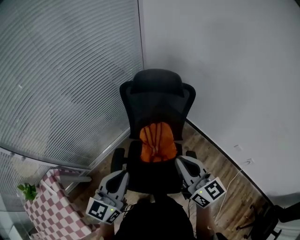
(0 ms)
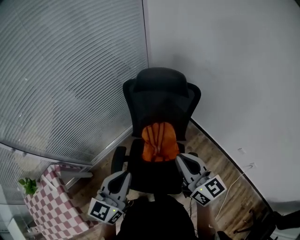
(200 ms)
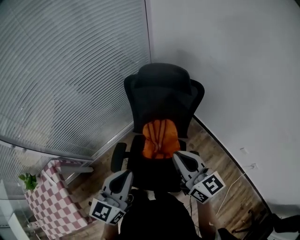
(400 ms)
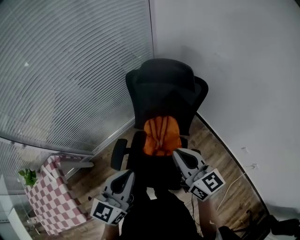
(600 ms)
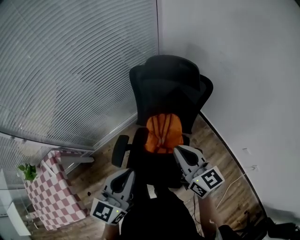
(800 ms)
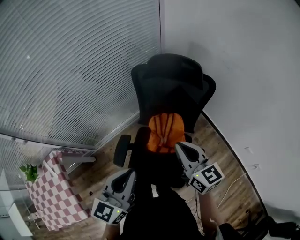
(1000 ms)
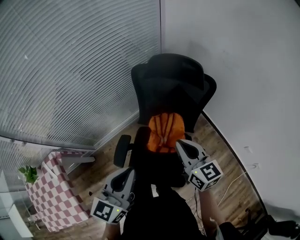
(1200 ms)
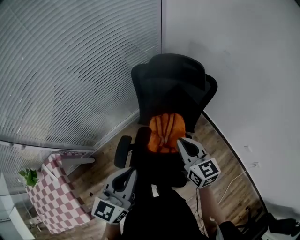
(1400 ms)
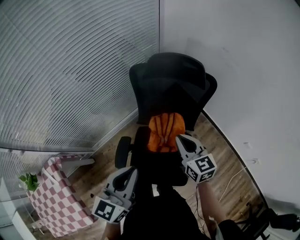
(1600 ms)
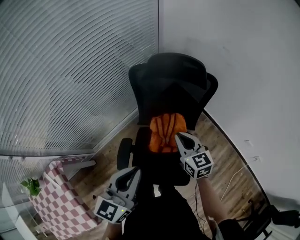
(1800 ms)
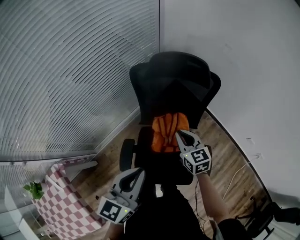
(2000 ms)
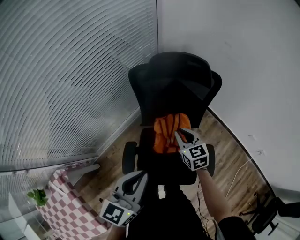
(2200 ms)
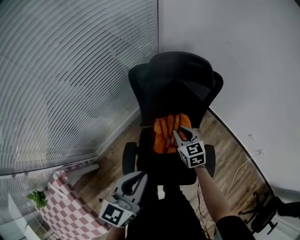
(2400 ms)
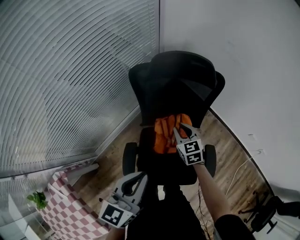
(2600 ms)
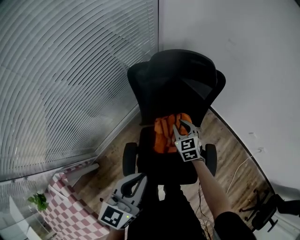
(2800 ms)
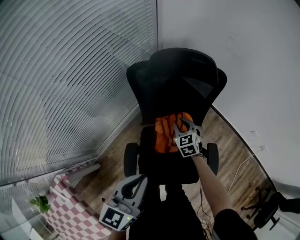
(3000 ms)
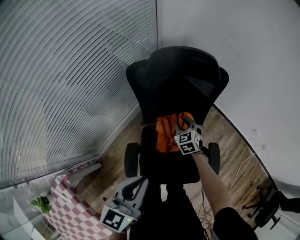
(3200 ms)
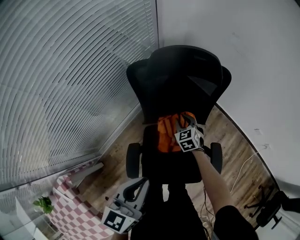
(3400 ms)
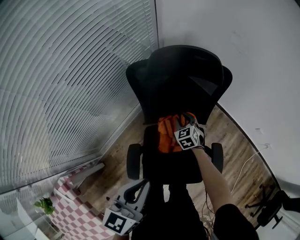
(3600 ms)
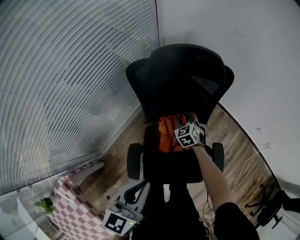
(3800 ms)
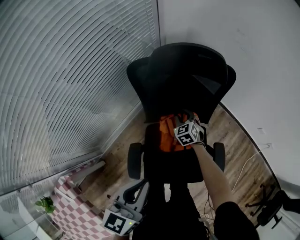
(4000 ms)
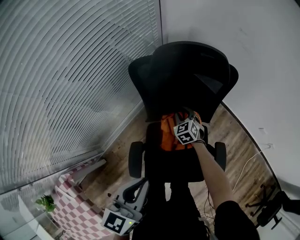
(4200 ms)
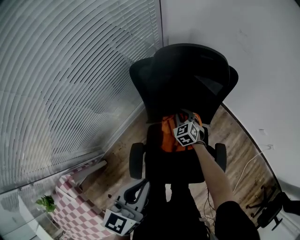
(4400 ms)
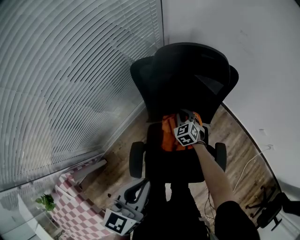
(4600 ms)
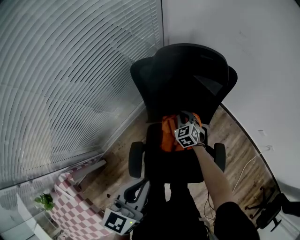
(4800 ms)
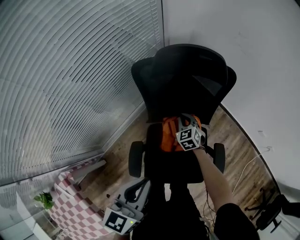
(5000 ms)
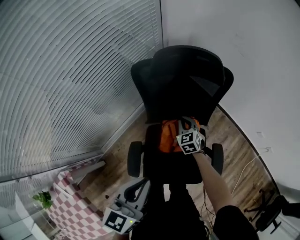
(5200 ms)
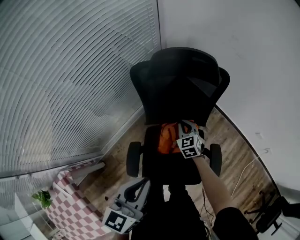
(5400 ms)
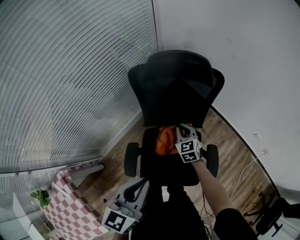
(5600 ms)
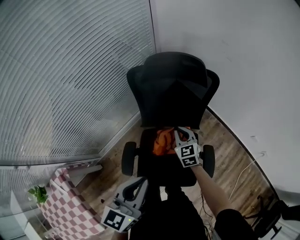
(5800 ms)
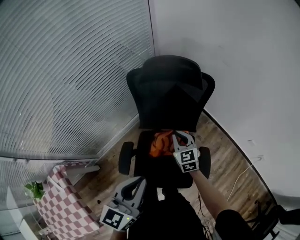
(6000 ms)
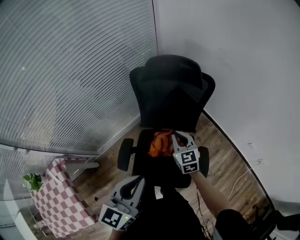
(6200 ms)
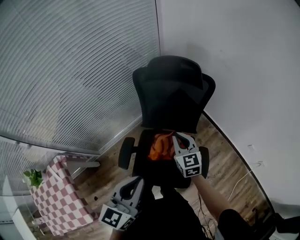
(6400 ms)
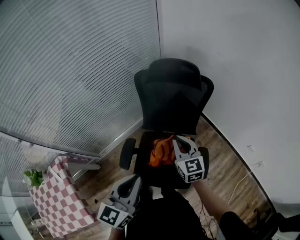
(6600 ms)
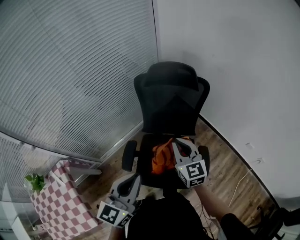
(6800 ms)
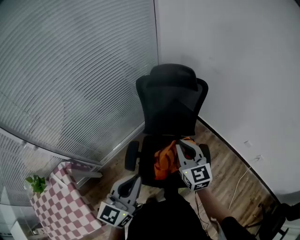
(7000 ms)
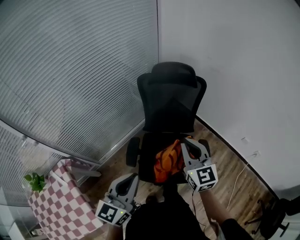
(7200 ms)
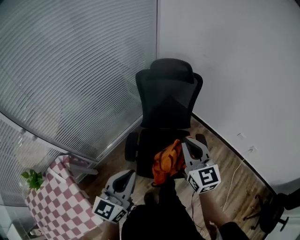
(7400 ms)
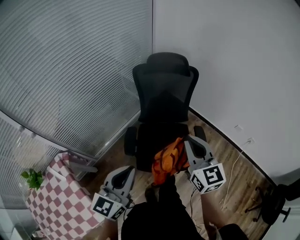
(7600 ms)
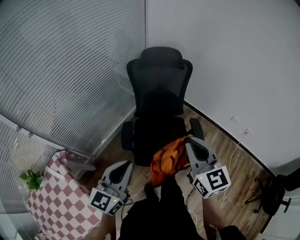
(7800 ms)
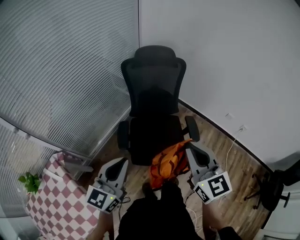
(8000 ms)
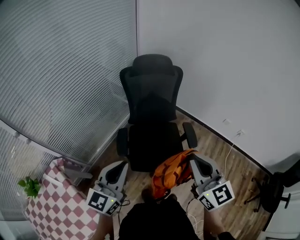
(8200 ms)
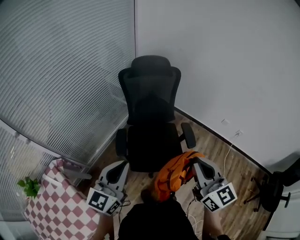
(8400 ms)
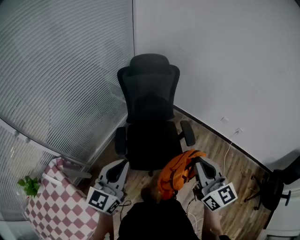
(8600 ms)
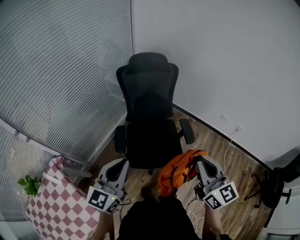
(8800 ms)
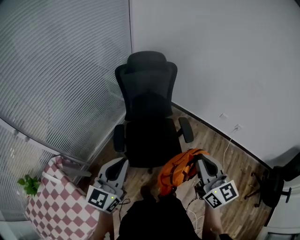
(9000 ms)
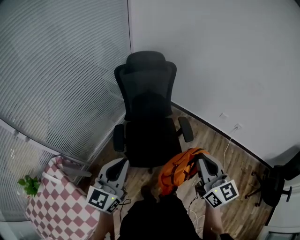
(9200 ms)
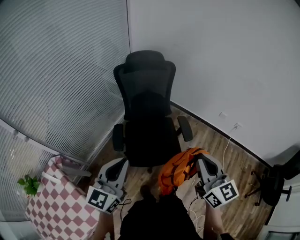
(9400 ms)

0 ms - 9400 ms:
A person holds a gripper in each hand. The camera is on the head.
0 ms - 1600 ms: The left gripper is displaced forward by roughly 5 cm, while the right gripper shifts roughly 20 cm forward and downward, and swivels about 20 degrees.
1600 ms - 3200 ms: The left gripper travels forward by approximately 5 cm. Meanwhile the right gripper is displaced downward and forward by approximately 25 cm, swivels some 30 degrees, and opens its fingers.
3200 ms - 4800 ms: The right gripper ends up about 5 cm from where it was.
4800 ms - 6200 ms: The left gripper shifts approximately 15 cm backward, to the right and upward. Meanwhile the right gripper goes some 25 cm upward and backward, and turns by about 30 degrees.
6200 ms - 7800 ms: The right gripper travels backward and upward by about 40 cm; the left gripper is displaced backward and to the left by about 25 cm.
7800 ms - 9400 ms: The right gripper goes about 15 cm backward and to the right; the left gripper shifts by approximately 5 cm.

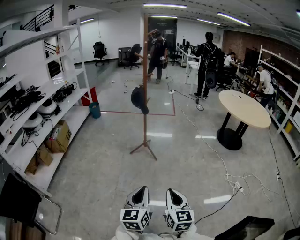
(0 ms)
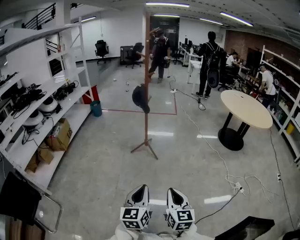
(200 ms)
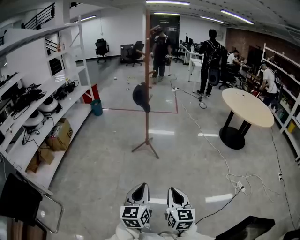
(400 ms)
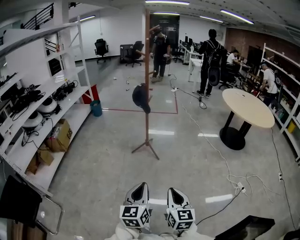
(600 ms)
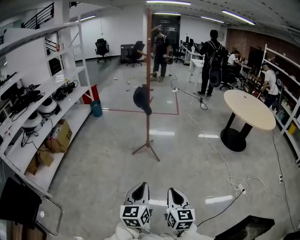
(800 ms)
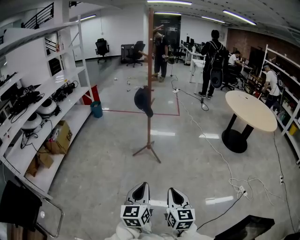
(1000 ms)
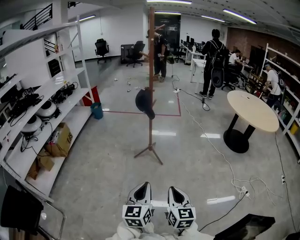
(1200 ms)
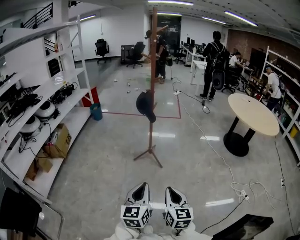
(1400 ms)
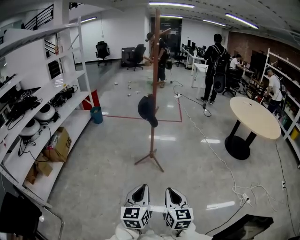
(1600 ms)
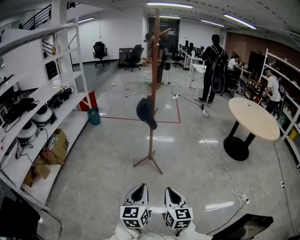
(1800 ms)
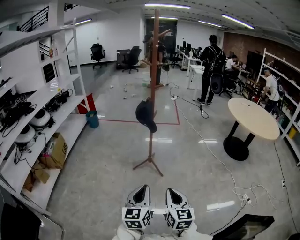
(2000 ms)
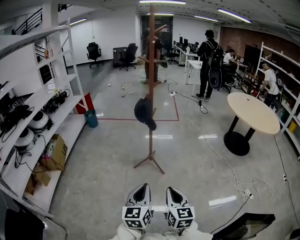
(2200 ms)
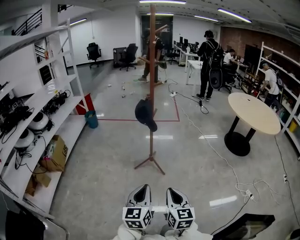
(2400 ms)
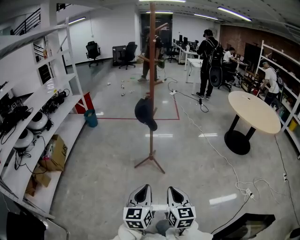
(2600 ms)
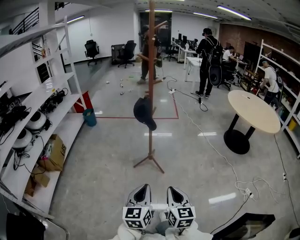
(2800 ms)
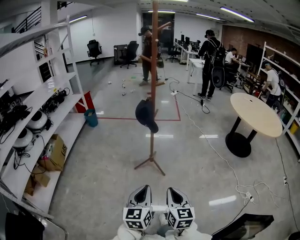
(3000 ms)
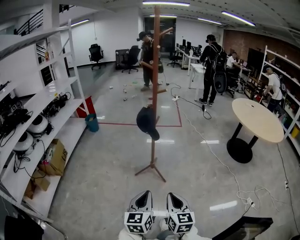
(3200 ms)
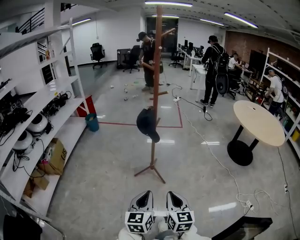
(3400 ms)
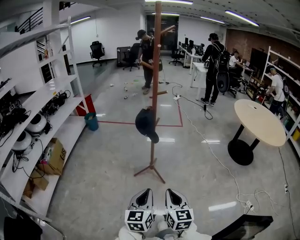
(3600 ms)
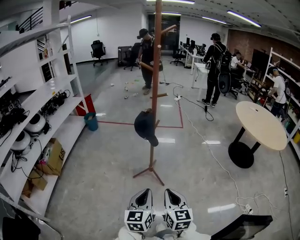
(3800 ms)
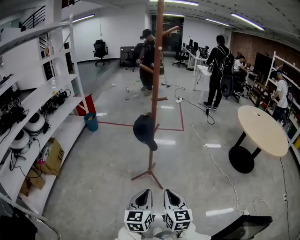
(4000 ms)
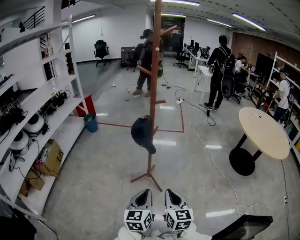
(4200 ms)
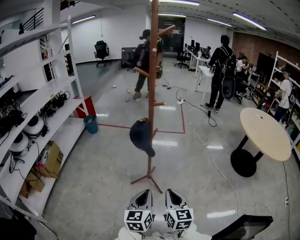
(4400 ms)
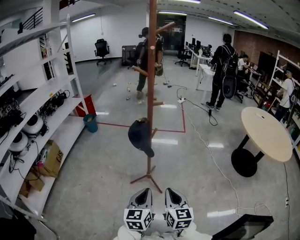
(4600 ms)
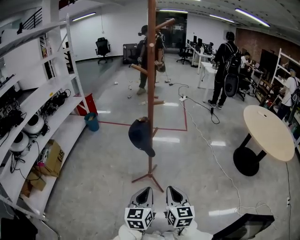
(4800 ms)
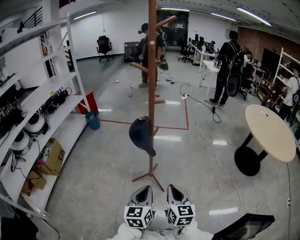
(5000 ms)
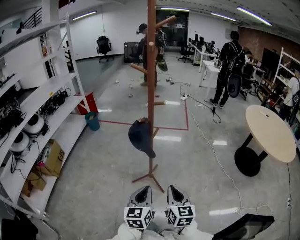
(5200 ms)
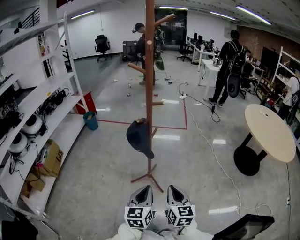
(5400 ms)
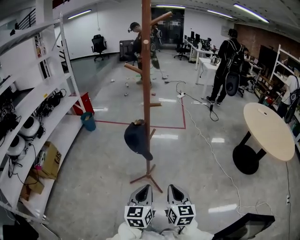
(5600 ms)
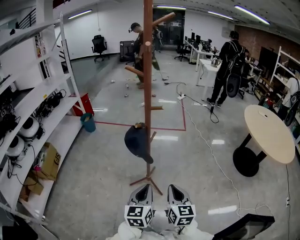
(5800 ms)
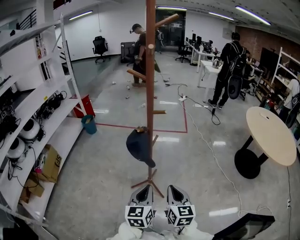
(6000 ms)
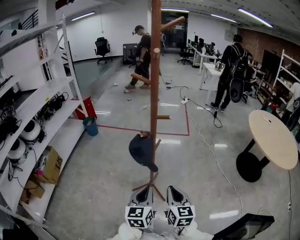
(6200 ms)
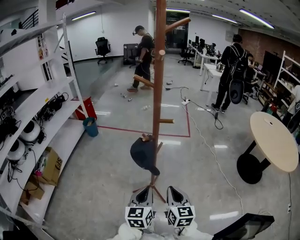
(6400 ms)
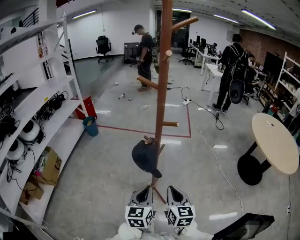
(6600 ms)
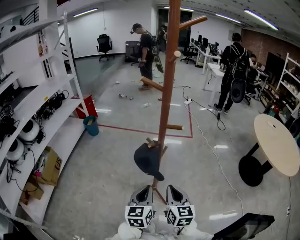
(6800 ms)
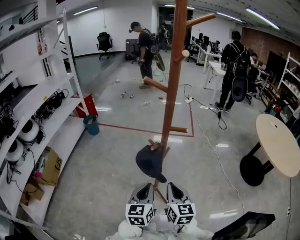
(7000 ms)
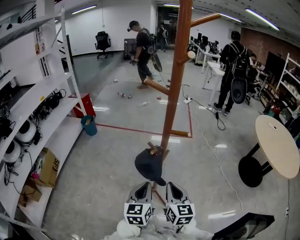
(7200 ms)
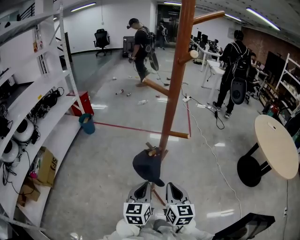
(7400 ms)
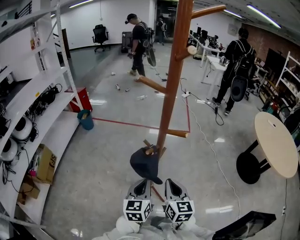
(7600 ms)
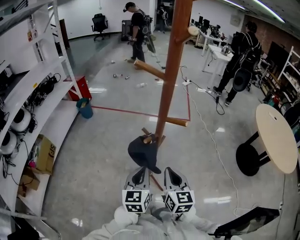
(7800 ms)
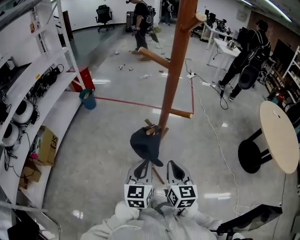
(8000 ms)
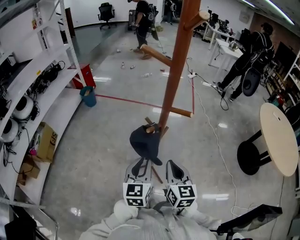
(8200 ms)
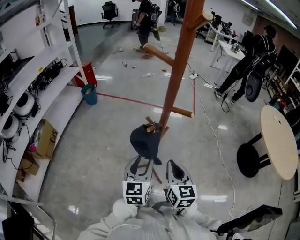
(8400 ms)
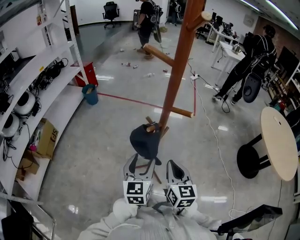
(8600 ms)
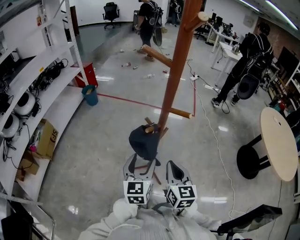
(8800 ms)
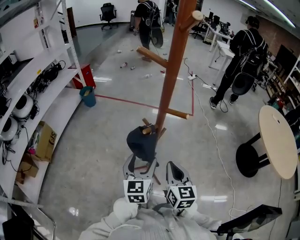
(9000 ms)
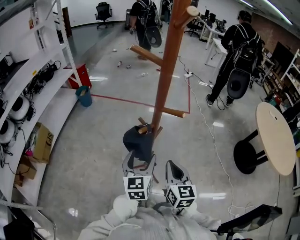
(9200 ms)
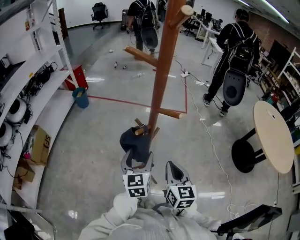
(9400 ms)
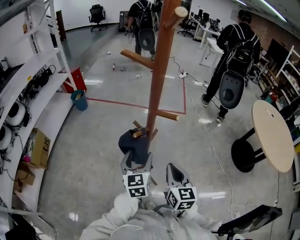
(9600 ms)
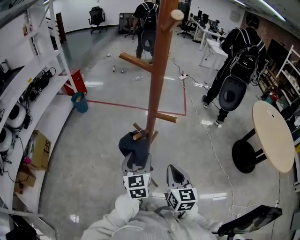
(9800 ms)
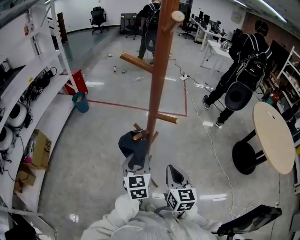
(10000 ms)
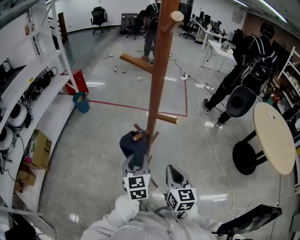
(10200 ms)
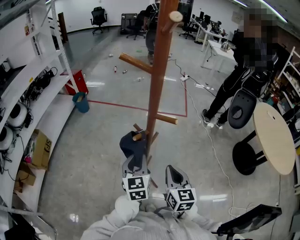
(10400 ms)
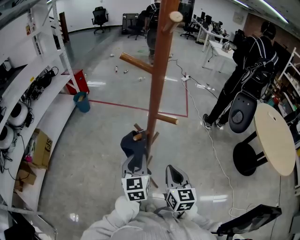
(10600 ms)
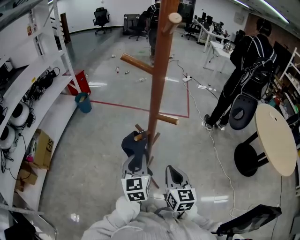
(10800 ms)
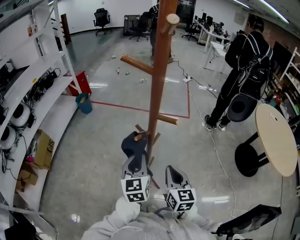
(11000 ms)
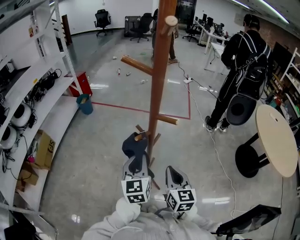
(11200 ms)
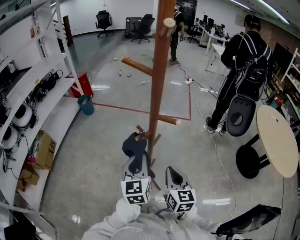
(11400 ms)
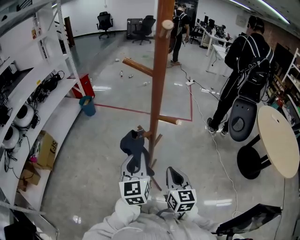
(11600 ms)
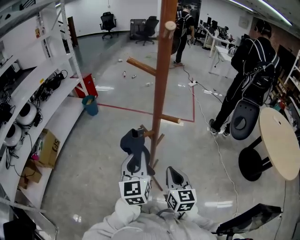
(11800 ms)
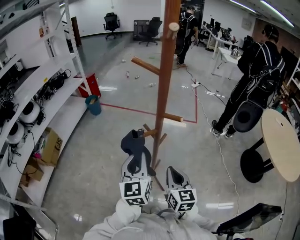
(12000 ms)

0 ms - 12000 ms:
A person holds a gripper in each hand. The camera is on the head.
0 ms - 1600 ms: Both grippers travel together forward, about 15 cm.
1600 ms - 3000 ms: Both grippers move forward, roughly 10 cm.
3000 ms - 4400 ms: The two grippers go approximately 15 cm forward.
4400 ms - 6000 ms: The two grippers go about 10 cm forward.
6000 ms - 7600 ms: The two grippers go roughly 15 cm forward.
7600 ms - 9000 ms: The left gripper opens up.
9000 ms - 10400 ms: The left gripper closes up.
10400 ms - 12000 ms: The left gripper heads upward, covering approximately 10 cm.

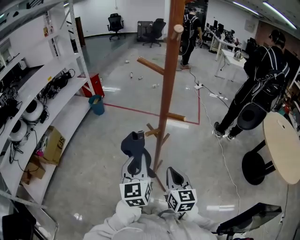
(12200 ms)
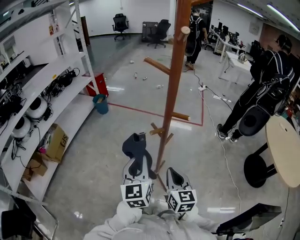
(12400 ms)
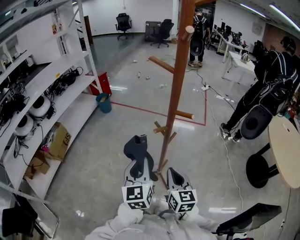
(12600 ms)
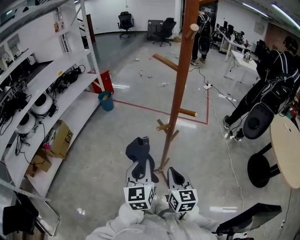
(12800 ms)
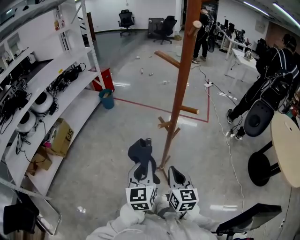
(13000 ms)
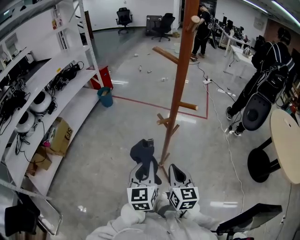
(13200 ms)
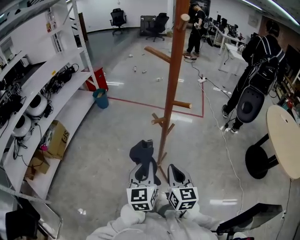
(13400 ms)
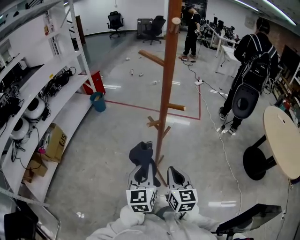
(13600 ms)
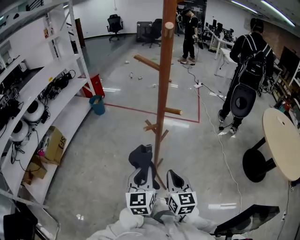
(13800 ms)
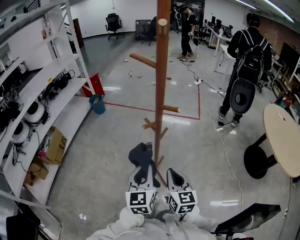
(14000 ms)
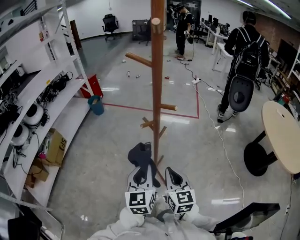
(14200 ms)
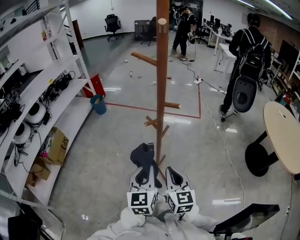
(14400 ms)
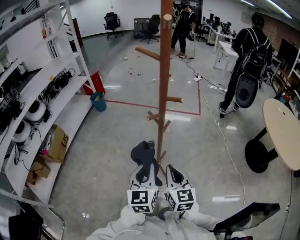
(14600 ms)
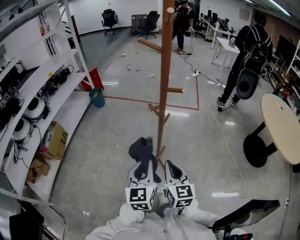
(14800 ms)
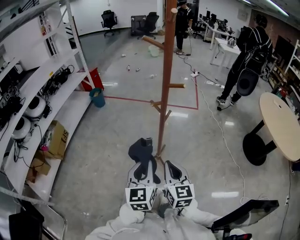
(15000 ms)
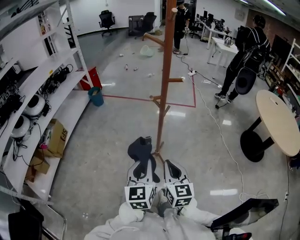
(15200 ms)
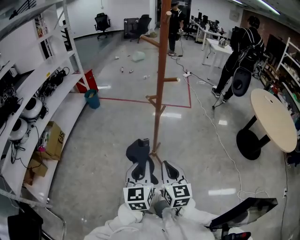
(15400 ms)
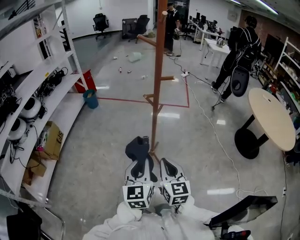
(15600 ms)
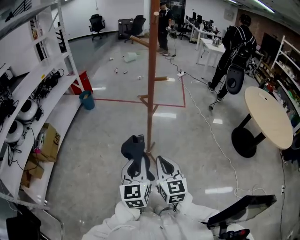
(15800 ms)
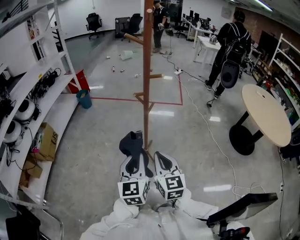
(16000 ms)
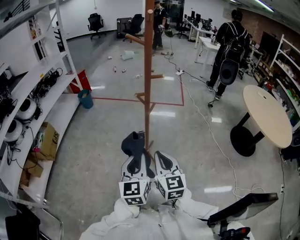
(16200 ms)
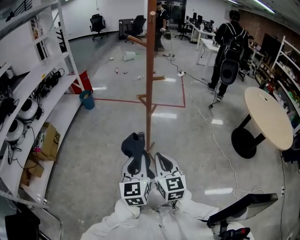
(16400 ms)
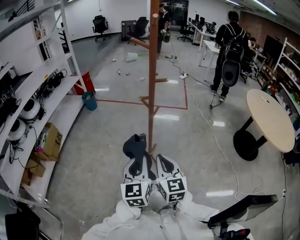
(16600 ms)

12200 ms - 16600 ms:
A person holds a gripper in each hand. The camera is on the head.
12200 ms - 13600 ms: The left gripper is displaced backward by roughly 5 cm.
13600 ms - 15200 ms: The left gripper goes about 10 cm backward. Meanwhile the right gripper shifts approximately 10 cm backward and to the left.
15200 ms - 16600 ms: There are only small adjustments of the grippers.
